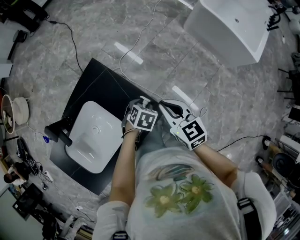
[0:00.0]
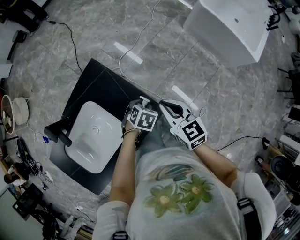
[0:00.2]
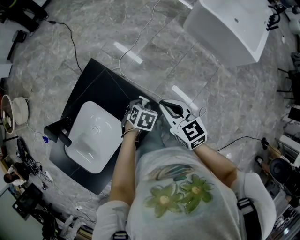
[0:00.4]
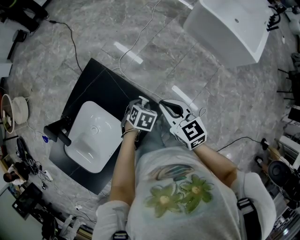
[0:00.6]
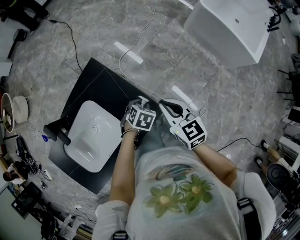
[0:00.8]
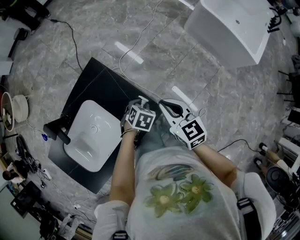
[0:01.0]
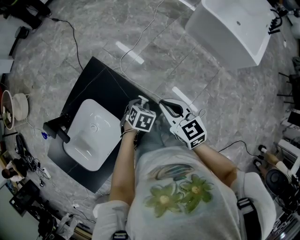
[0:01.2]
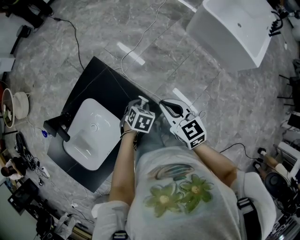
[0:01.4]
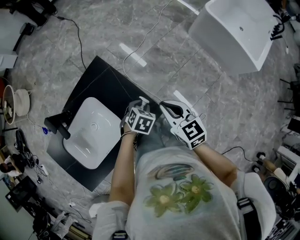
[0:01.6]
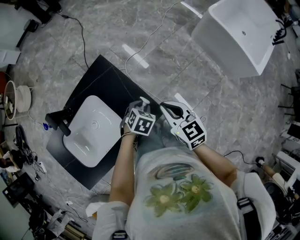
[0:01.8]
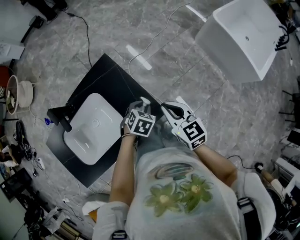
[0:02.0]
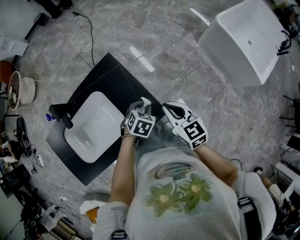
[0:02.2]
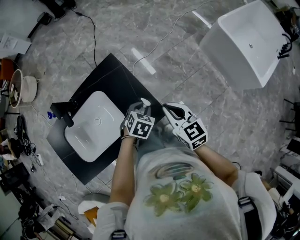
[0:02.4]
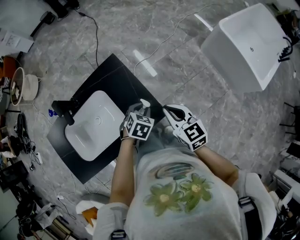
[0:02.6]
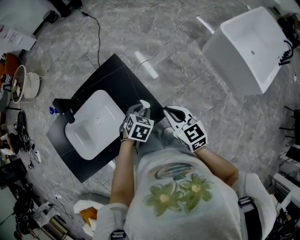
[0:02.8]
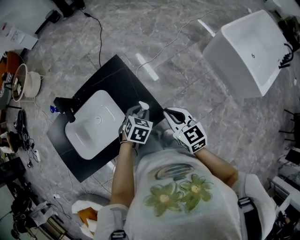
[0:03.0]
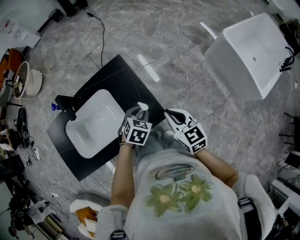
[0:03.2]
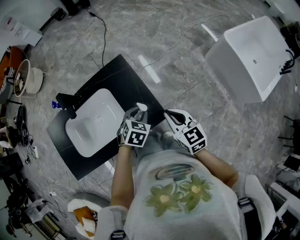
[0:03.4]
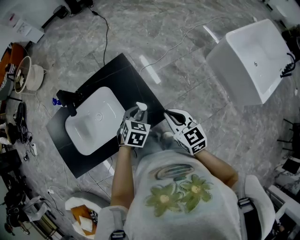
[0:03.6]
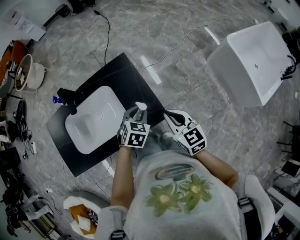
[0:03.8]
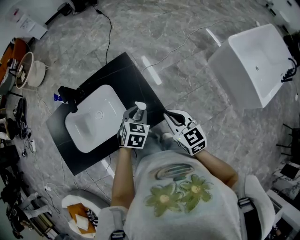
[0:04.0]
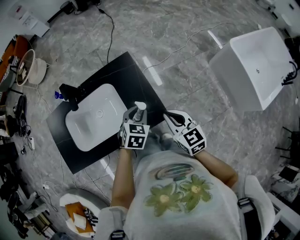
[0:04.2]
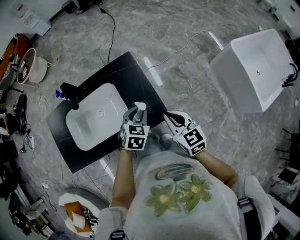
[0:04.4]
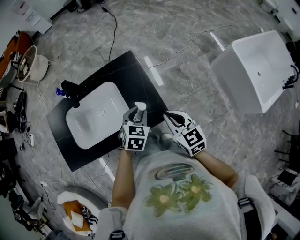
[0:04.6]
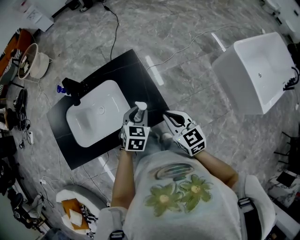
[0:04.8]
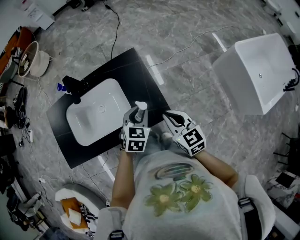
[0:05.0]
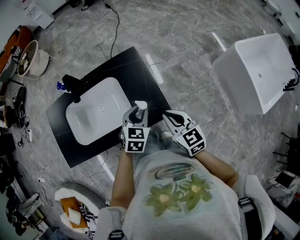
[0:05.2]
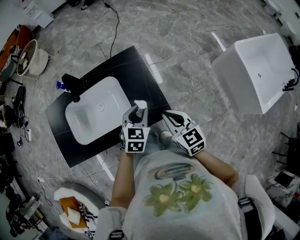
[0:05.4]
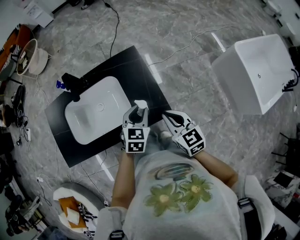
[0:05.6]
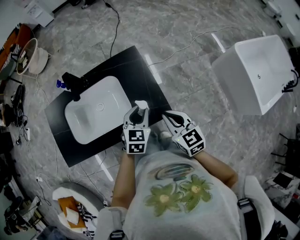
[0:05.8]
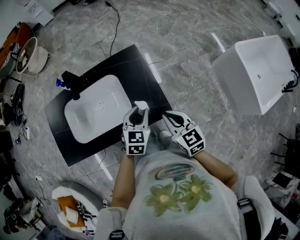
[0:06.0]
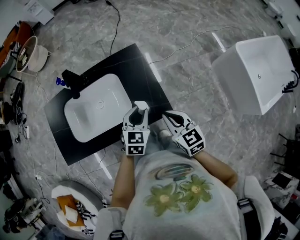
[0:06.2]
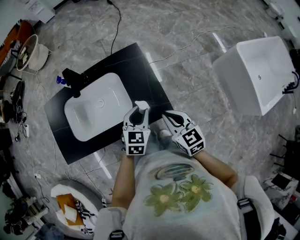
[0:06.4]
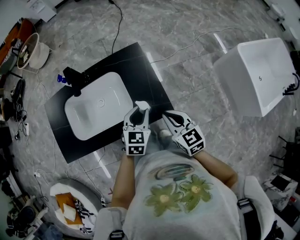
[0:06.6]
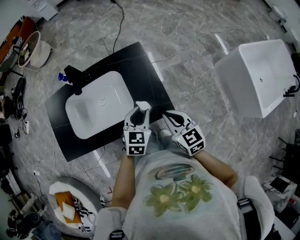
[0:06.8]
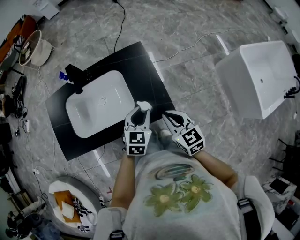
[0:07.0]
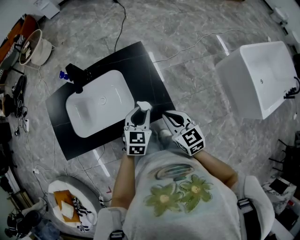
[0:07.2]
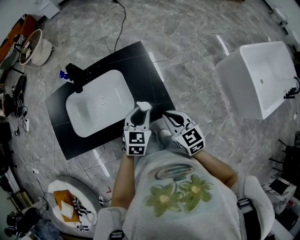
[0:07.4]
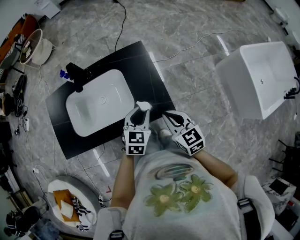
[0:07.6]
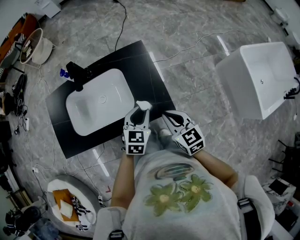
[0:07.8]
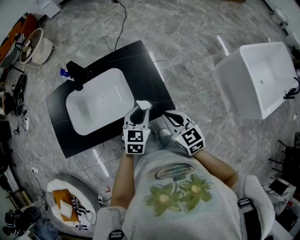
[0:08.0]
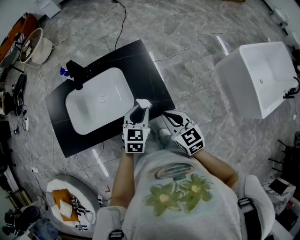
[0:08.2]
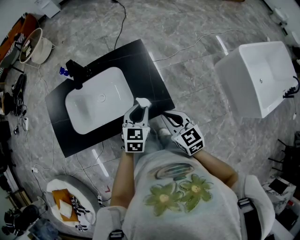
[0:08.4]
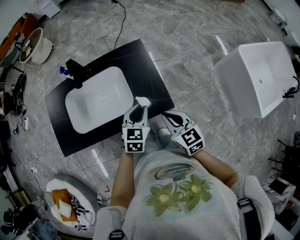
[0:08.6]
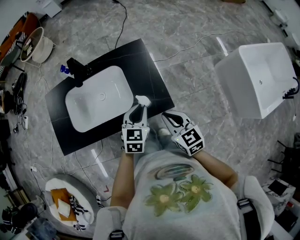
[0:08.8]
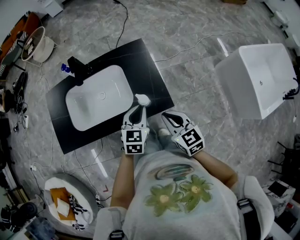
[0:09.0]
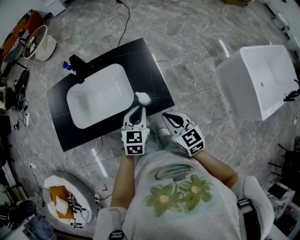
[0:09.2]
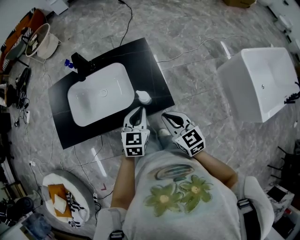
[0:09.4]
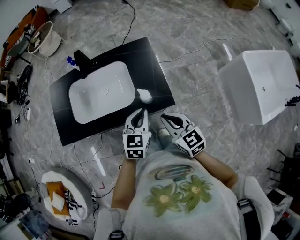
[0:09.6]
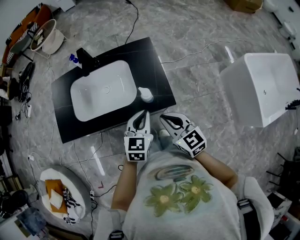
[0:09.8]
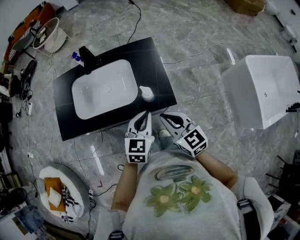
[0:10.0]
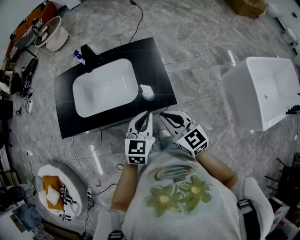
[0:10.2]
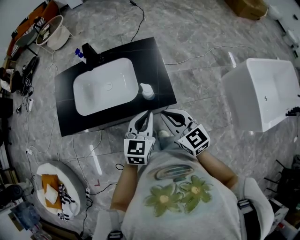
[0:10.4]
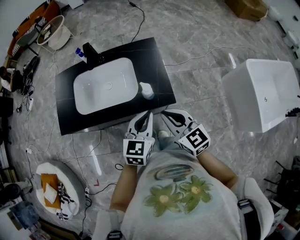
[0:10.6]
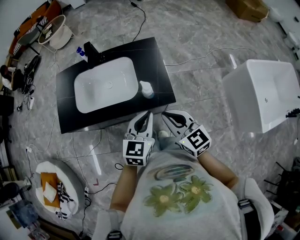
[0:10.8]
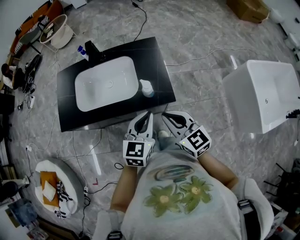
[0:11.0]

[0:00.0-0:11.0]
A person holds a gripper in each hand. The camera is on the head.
0:00.0 to 0:01.6: The left gripper closes its fingers.
0:01.6 to 0:03.2: The right gripper shifts by about 5 cm. Meanwhile the left gripper is displaced upward by about 10 cm.
0:03.2 to 0:04.8: The left gripper moves some 5 cm. The right gripper changes place by roughly 5 cm.
0:04.8 to 0:07.8: The grippers stay close to where they were, moving slightly.
0:07.8 to 0:09.4: Both grippers travel together backward, about 5 cm. The left gripper closes.
0:09.4 to 0:11.0: The two grippers go about 10 cm backward and upward.

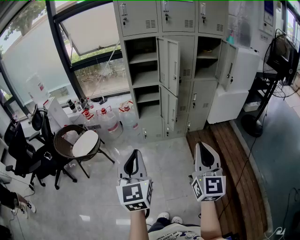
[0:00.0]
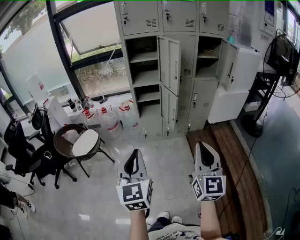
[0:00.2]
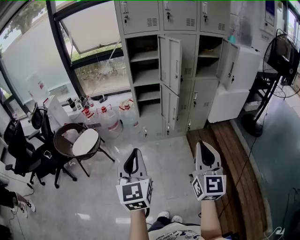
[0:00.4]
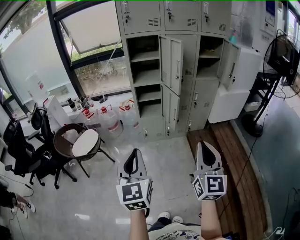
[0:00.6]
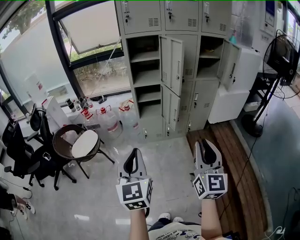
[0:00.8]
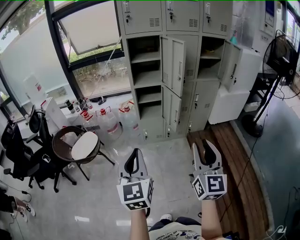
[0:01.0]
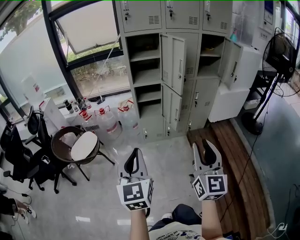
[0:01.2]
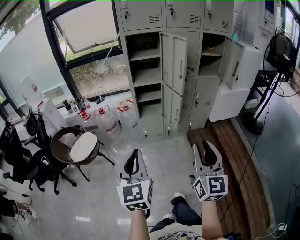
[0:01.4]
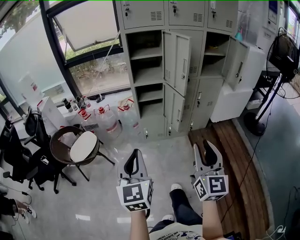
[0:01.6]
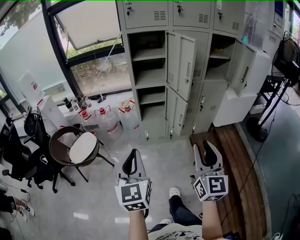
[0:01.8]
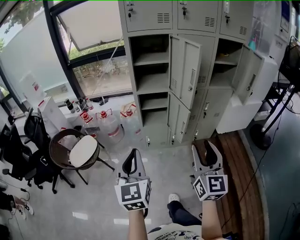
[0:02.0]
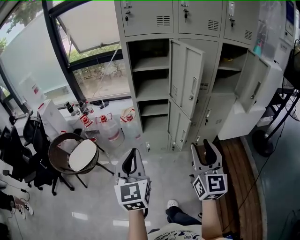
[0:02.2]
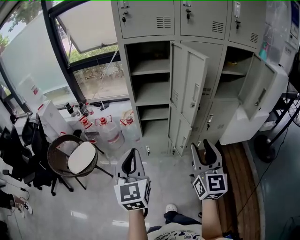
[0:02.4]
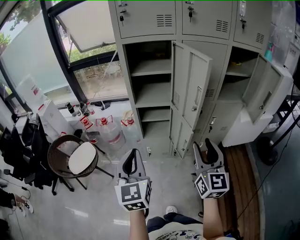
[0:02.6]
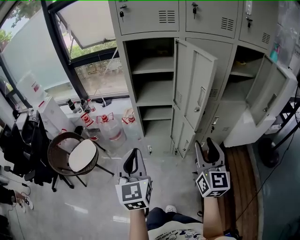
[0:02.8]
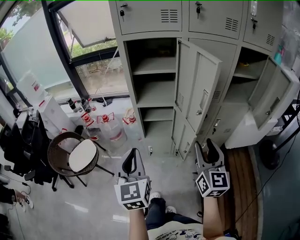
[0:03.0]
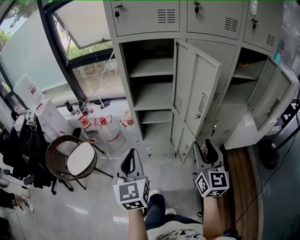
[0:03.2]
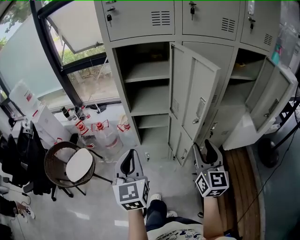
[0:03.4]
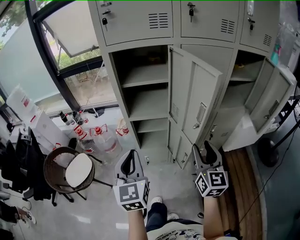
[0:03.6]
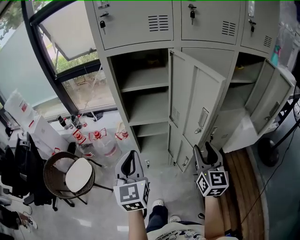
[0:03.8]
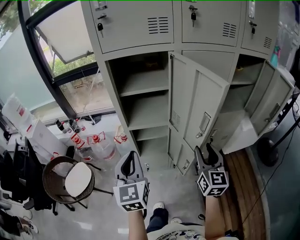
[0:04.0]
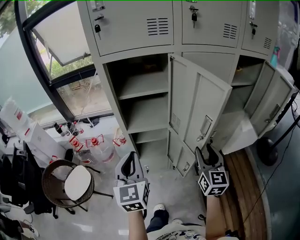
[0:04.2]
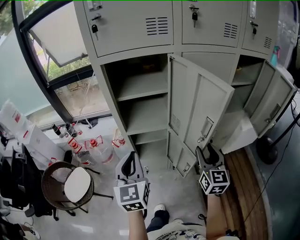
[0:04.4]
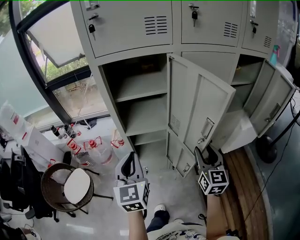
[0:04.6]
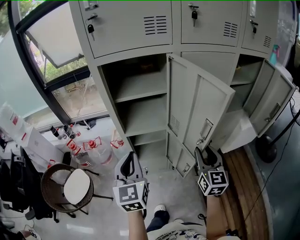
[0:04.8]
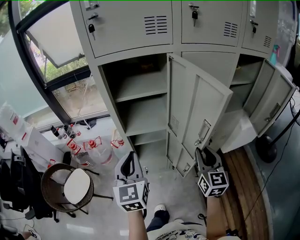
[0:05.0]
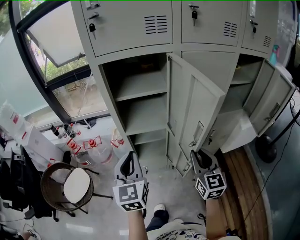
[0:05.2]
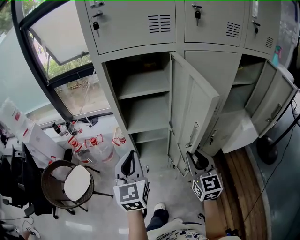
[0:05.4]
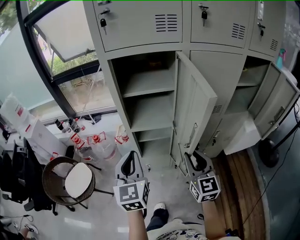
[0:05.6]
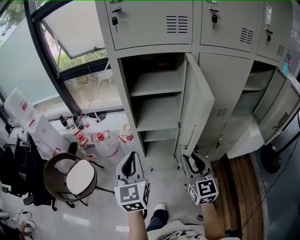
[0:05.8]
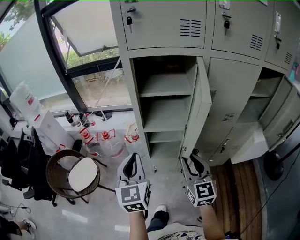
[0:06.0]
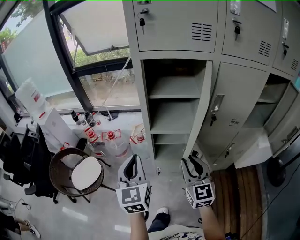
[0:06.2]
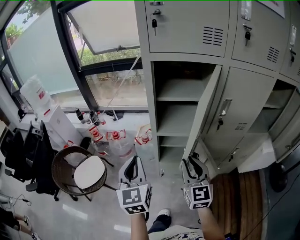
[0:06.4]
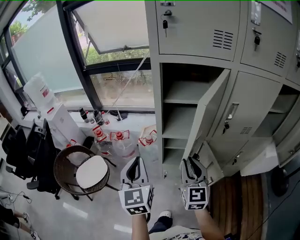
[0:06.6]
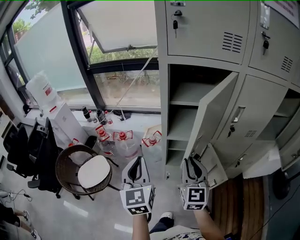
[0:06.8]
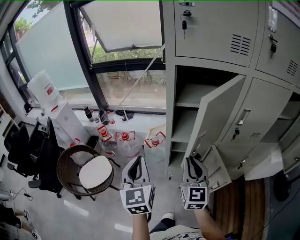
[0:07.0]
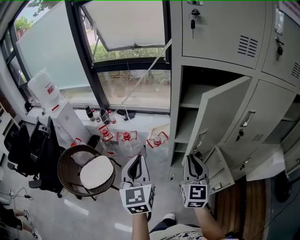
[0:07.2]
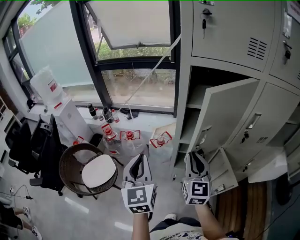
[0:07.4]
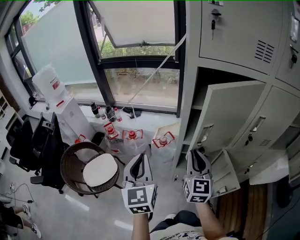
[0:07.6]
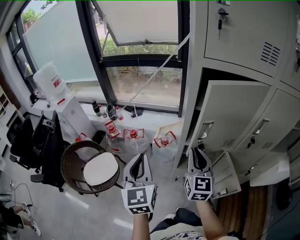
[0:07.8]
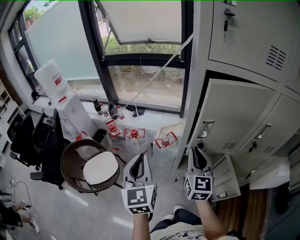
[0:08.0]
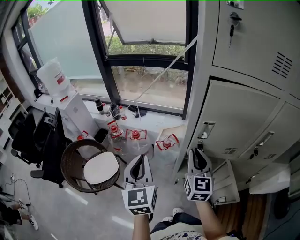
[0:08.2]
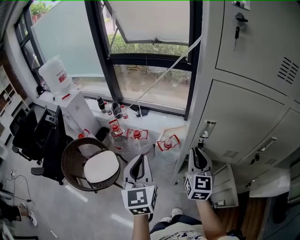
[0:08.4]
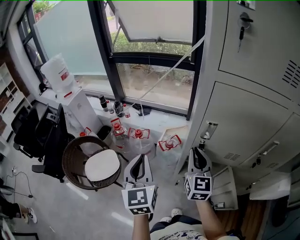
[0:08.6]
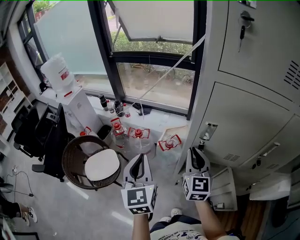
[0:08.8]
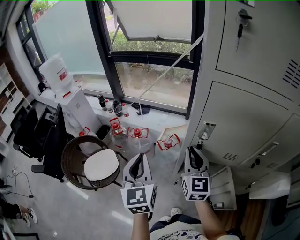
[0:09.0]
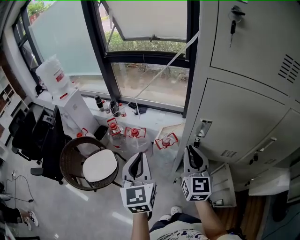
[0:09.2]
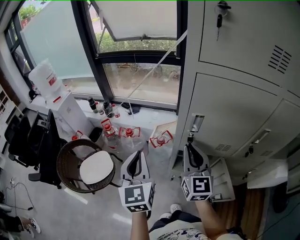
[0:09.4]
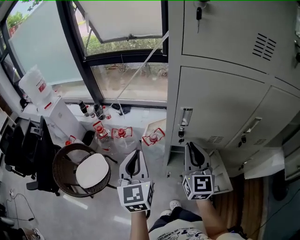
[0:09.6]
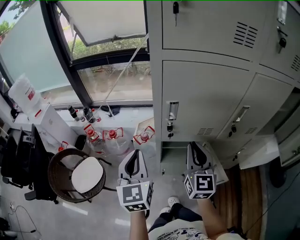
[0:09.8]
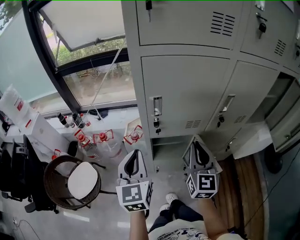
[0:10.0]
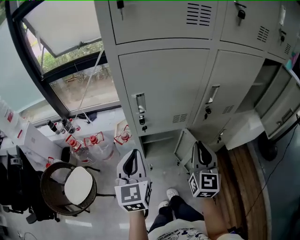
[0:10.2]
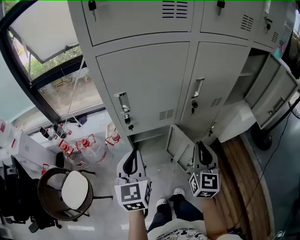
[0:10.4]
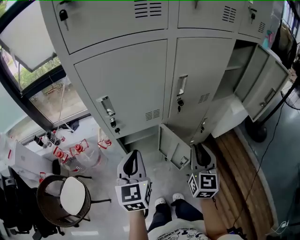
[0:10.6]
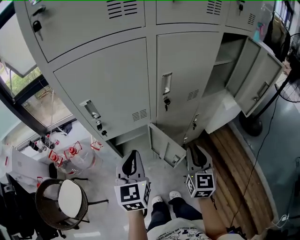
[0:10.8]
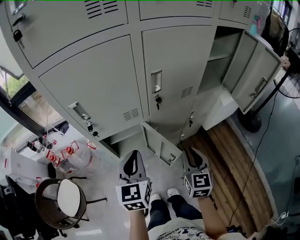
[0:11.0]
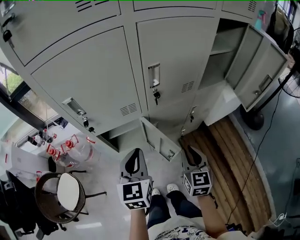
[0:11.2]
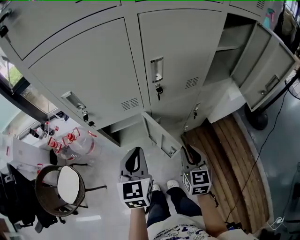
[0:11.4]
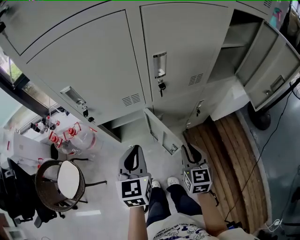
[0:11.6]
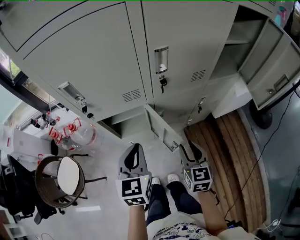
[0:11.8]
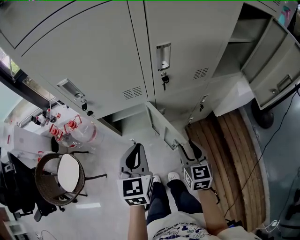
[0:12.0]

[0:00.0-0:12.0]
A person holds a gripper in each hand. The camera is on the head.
0:00.0 to 0:01.6: The left gripper moves forward and to the left, approximately 10 cm. The right gripper travels forward by approximately 10 cm, and opens its fingers.
0:01.6 to 0:03.0: The grippers both shift forward by approximately 30 cm.
0:03.0 to 0:04.4: The two grippers go roughly 15 cm forward.
0:04.4 to 0:06.0: The right gripper is displaced to the left by roughly 15 cm, and rotates some 20 degrees. Meanwhile the left gripper moves to the left, some 5 cm.
0:06.0 to 0:07.6: The left gripper shifts approximately 15 cm to the left and forward; the right gripper is displaced forward and to the left by roughly 20 cm.
0:07.6 to 0:09.0: The grippers both shift forward by about 10 cm.
0:09.0 to 0:10.4: The right gripper ends up about 30 cm from where it was, and turns by roughly 40 degrees; the left gripper changes place by some 20 cm, and changes its angle by approximately 40 degrees.
0:10.4 to 0:12.0: The right gripper is displaced downward and to the right by some 20 cm, rotates some 30 degrees, and opens its fingers, while the left gripper travels to the right and downward by about 20 cm.

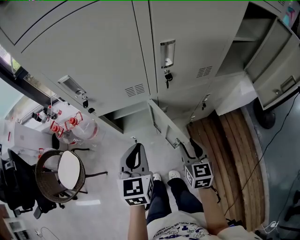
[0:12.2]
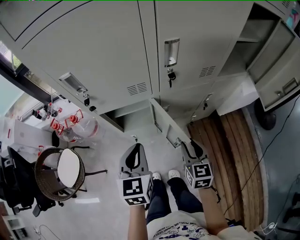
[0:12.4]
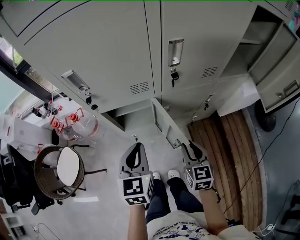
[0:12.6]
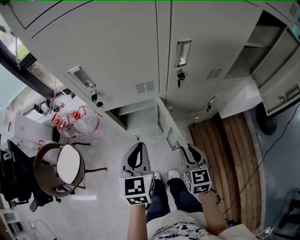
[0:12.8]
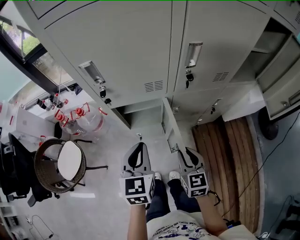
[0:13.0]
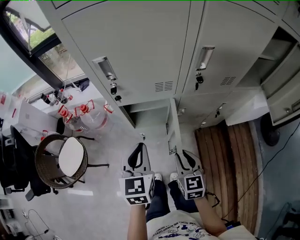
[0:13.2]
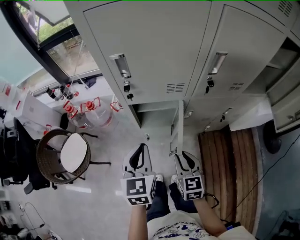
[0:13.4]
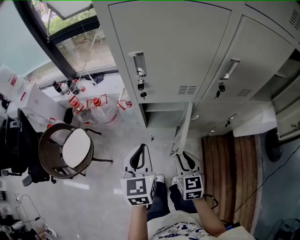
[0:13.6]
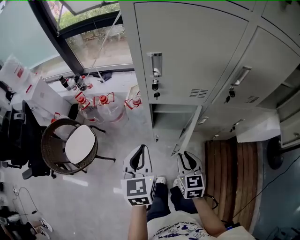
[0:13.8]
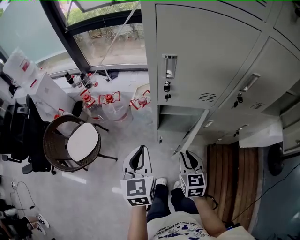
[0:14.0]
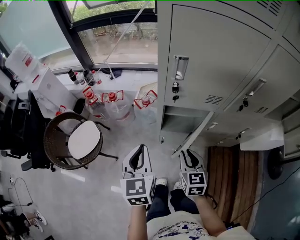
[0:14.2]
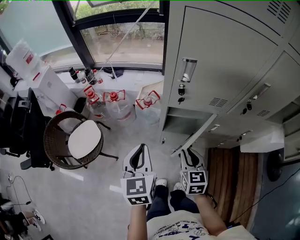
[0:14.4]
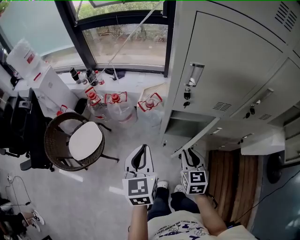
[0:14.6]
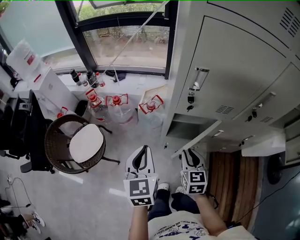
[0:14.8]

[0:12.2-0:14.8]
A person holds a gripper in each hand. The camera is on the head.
0:12.2 to 0:13.4: The two grippers go approximately 10 cm to the left.
0:13.4 to 0:14.8: The left gripper heads to the left, covering roughly 15 cm. Meanwhile the right gripper is displaced to the left and forward by about 15 cm.
